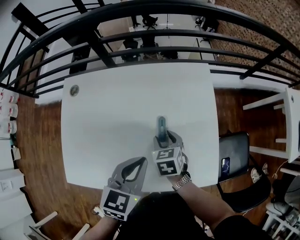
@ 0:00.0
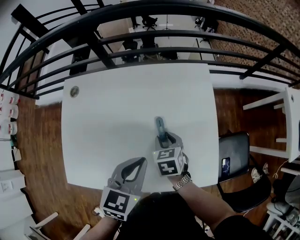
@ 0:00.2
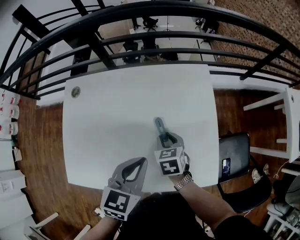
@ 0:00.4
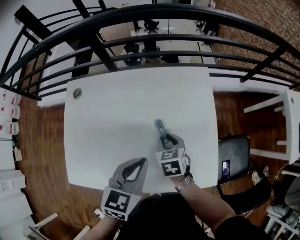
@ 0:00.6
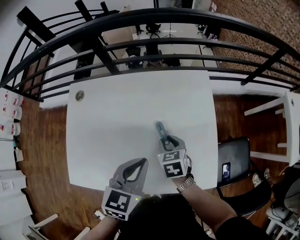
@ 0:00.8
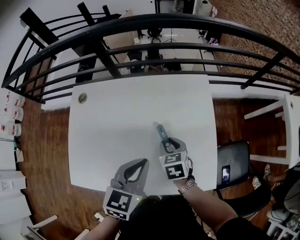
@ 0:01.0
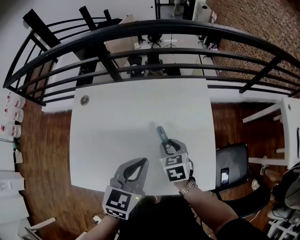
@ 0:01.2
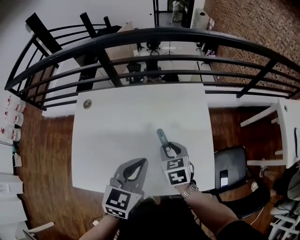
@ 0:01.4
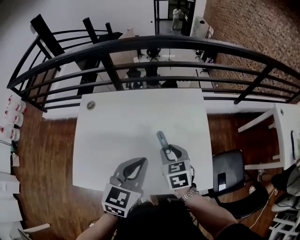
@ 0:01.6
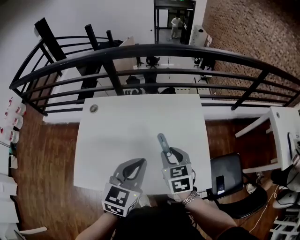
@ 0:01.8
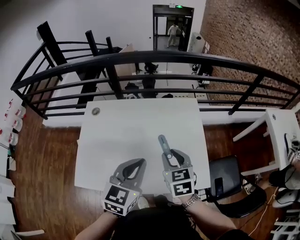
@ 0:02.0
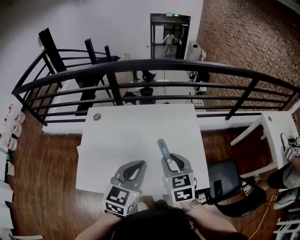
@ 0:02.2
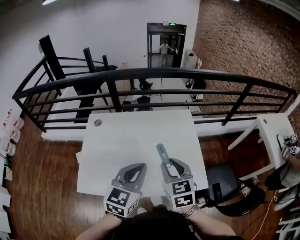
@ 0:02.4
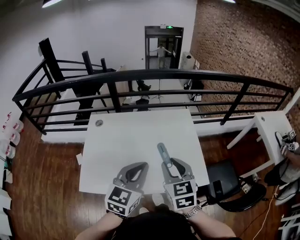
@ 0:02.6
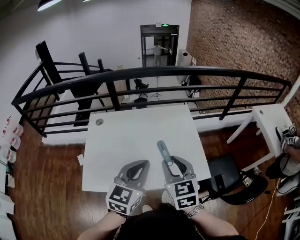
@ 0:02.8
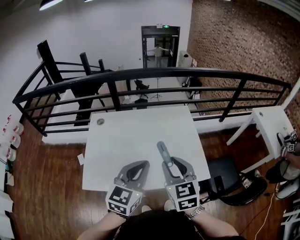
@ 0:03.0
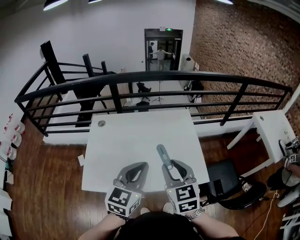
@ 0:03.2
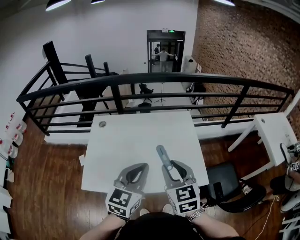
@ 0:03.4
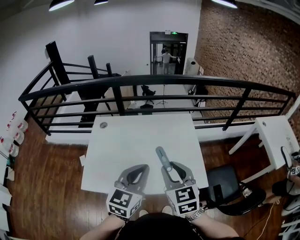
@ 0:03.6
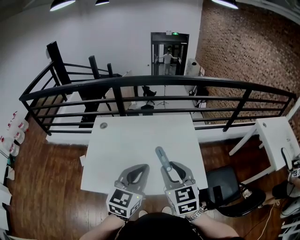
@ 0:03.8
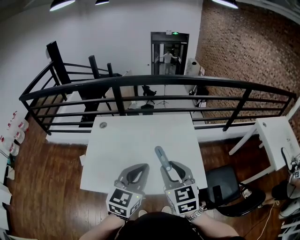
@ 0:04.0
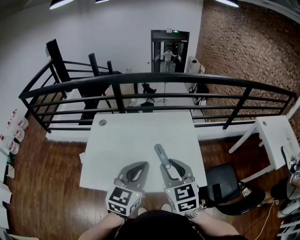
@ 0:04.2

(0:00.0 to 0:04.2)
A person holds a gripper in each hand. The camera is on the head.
0:00.0 - 0:01.4: Both grippers travel together upward, some 5 cm.
0:01.4 - 0:02.8: The left gripper is displaced backward and upward by some 20 cm; the right gripper heads upward and backward, covering about 30 cm, and rotates some 30 degrees.
0:02.8 - 0:04.2: The grippers move only a little.

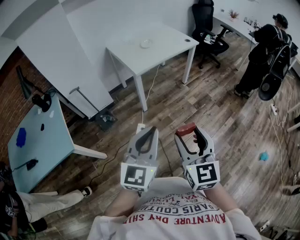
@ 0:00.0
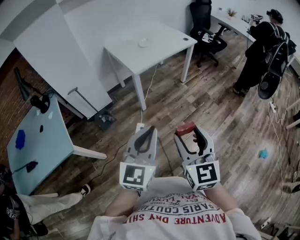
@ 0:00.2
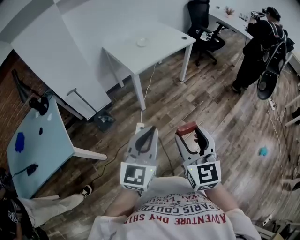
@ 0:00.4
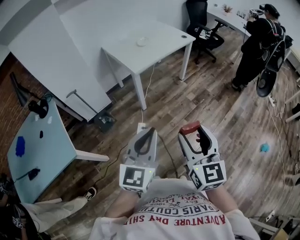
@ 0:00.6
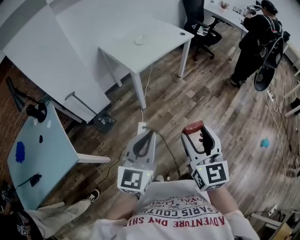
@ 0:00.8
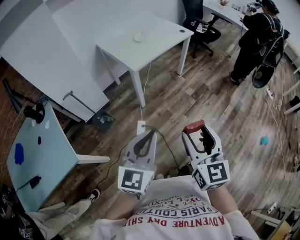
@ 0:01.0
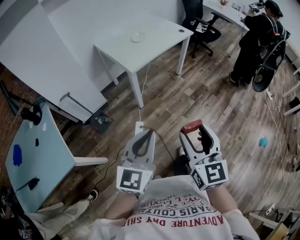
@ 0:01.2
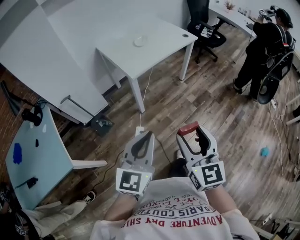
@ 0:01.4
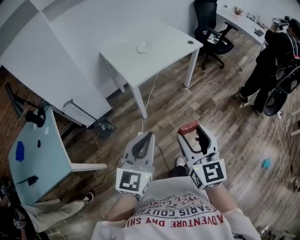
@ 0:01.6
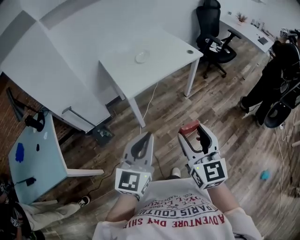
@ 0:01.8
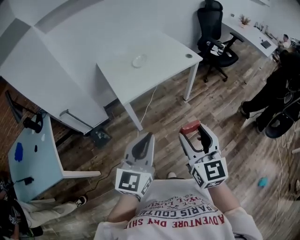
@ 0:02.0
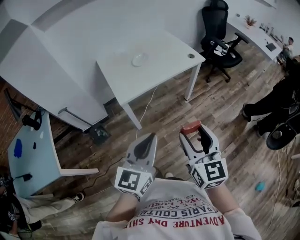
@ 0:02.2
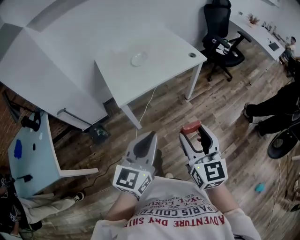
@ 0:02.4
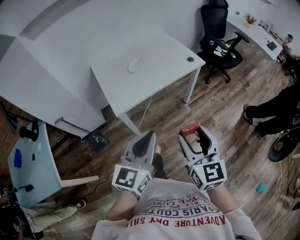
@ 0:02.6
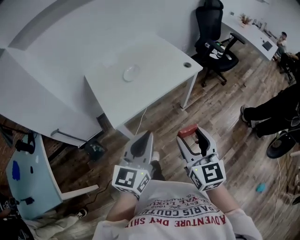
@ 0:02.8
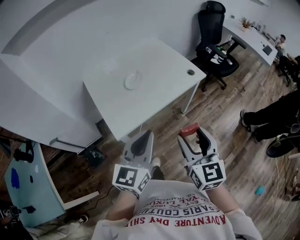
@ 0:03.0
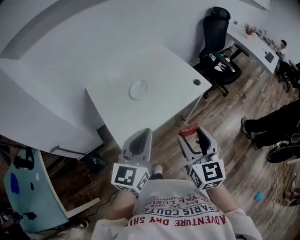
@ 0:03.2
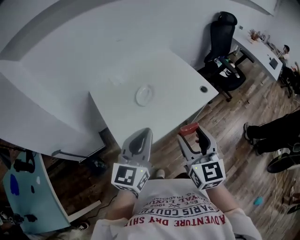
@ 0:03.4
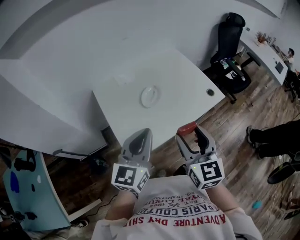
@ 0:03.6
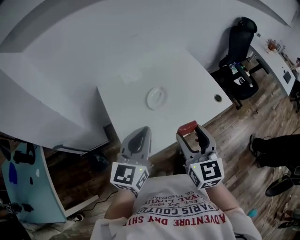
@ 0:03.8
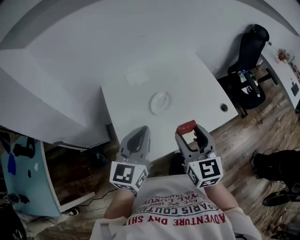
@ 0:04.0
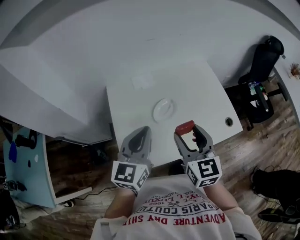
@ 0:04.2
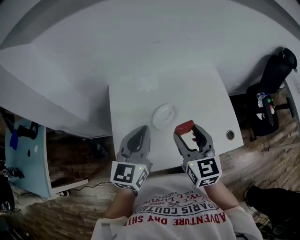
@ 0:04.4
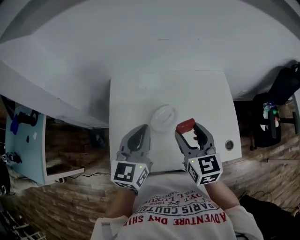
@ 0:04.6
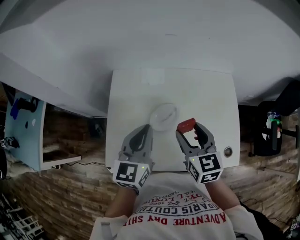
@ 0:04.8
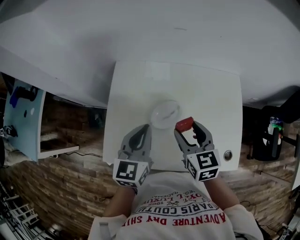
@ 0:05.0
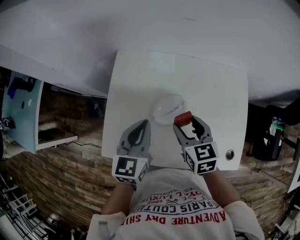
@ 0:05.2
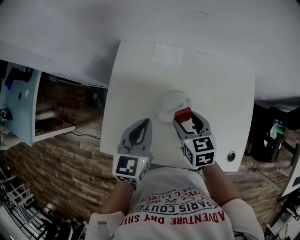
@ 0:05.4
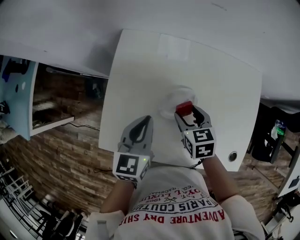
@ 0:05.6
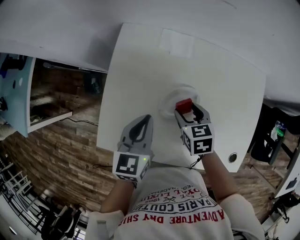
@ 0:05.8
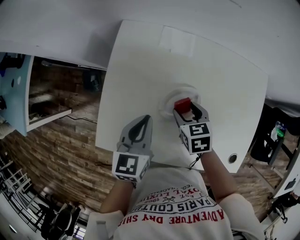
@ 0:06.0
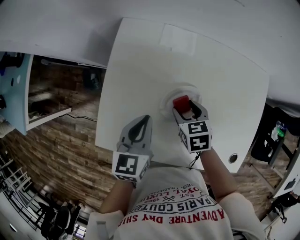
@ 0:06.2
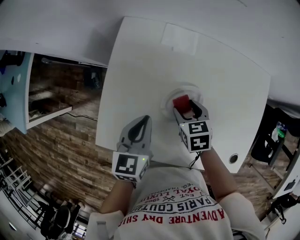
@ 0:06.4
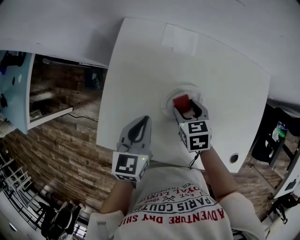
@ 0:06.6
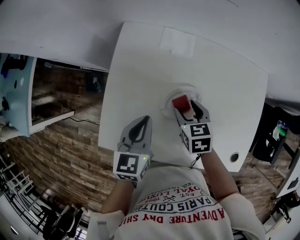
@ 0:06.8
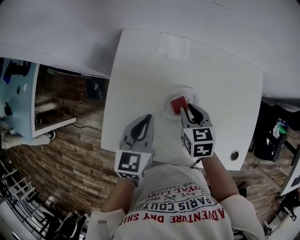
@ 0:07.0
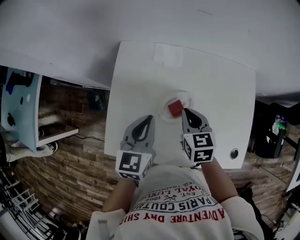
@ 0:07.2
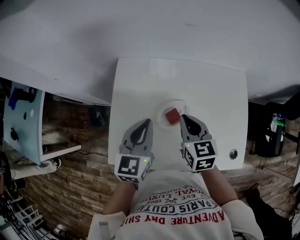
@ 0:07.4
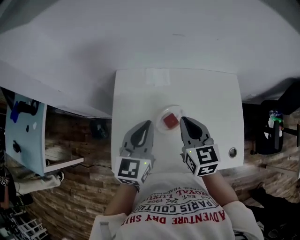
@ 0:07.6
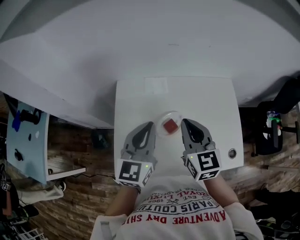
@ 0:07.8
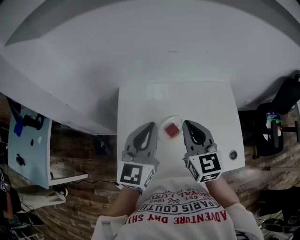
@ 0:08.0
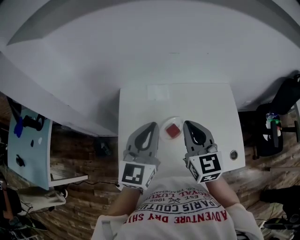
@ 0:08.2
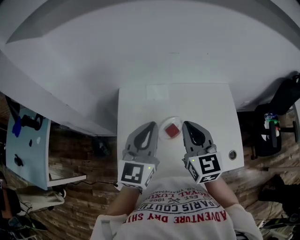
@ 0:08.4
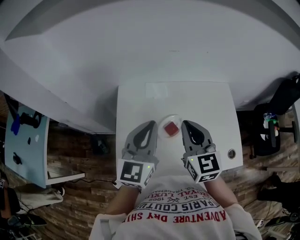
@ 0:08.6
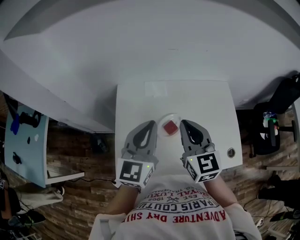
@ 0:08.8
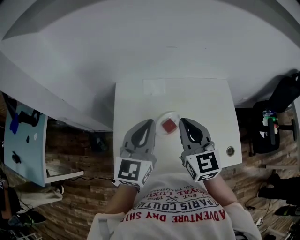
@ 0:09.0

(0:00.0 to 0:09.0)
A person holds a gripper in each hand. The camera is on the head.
0:00.0 - 0:01.6: The grippers both shift forward by about 15 cm.
0:01.6 - 0:03.0: The two grippers go some 35 cm forward.
0:03.0 - 0:04.4: The right gripper changes place by about 40 cm, and turns by some 30 degrees. Meanwhile the left gripper changes place by about 35 cm, and swivels some 30 degrees.
0:04.4 - 0:06.0: The grippers both shift downward by roughly 20 cm. The right gripper tips its fingers downward by roughly 40 degrees. The left gripper swivels about 30 degrees.
0:06.0 - 0:07.6: Both grippers move upward, some 15 cm. The right gripper angles its fingers upward, by some 30 degrees, and closes its fingers, while the left gripper swivels approximately 20 degrees.
0:07.6 - 0:09.0: Both grippers travel together upward, some 5 cm.

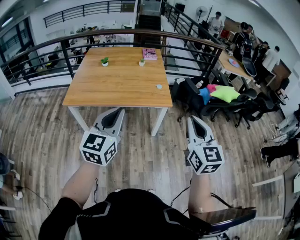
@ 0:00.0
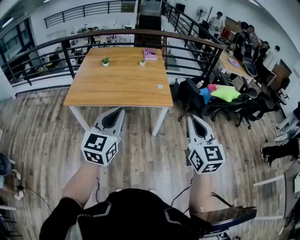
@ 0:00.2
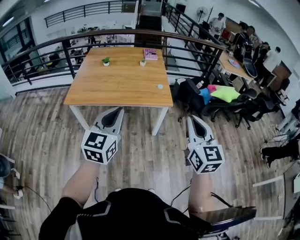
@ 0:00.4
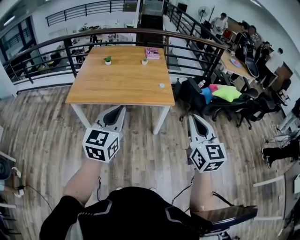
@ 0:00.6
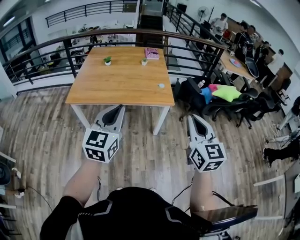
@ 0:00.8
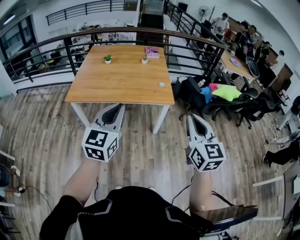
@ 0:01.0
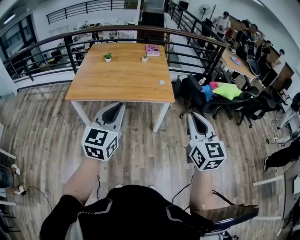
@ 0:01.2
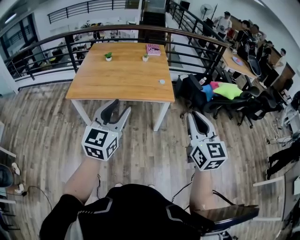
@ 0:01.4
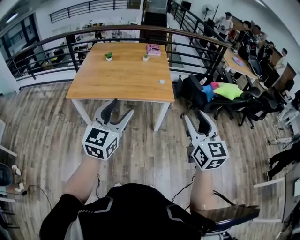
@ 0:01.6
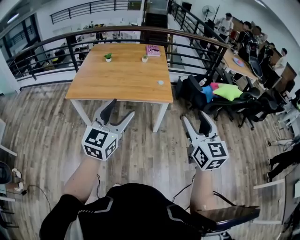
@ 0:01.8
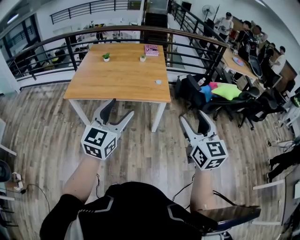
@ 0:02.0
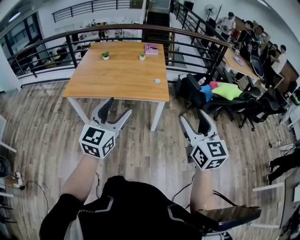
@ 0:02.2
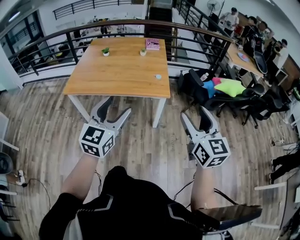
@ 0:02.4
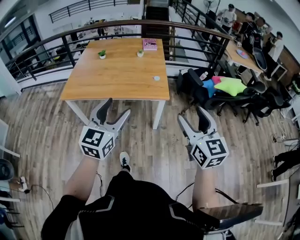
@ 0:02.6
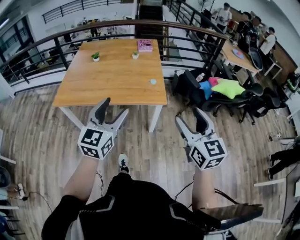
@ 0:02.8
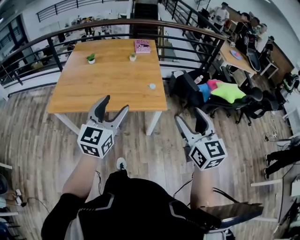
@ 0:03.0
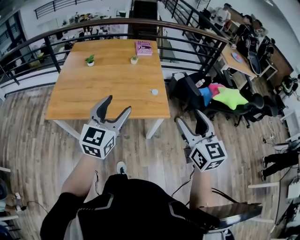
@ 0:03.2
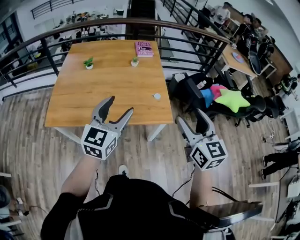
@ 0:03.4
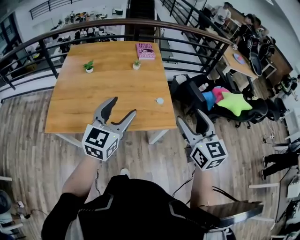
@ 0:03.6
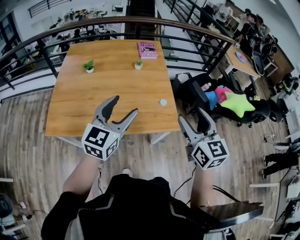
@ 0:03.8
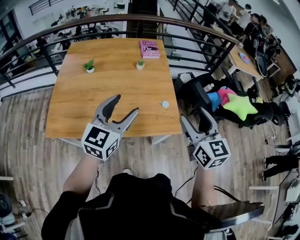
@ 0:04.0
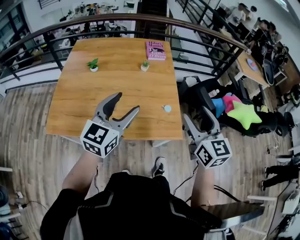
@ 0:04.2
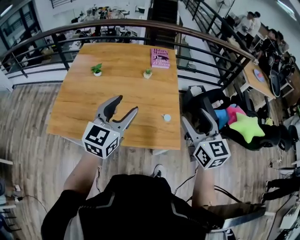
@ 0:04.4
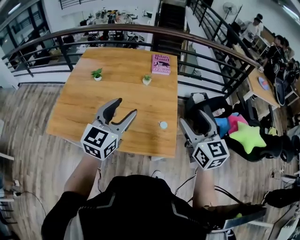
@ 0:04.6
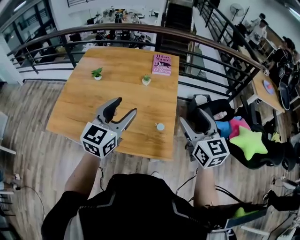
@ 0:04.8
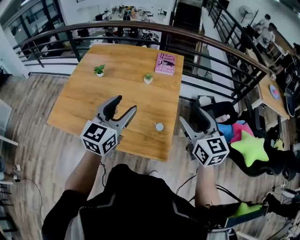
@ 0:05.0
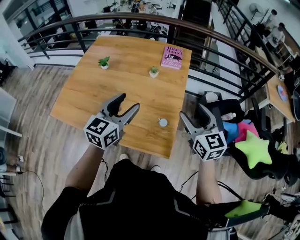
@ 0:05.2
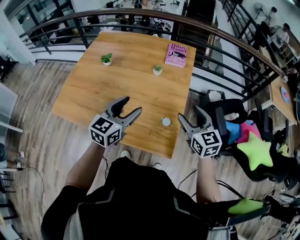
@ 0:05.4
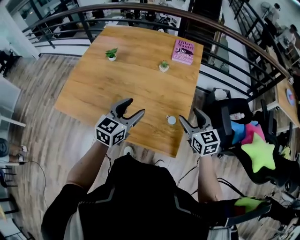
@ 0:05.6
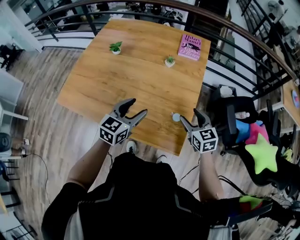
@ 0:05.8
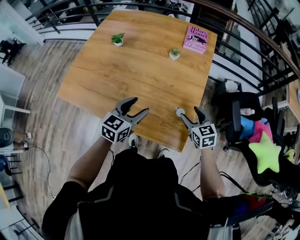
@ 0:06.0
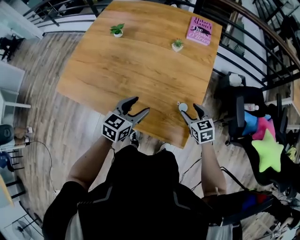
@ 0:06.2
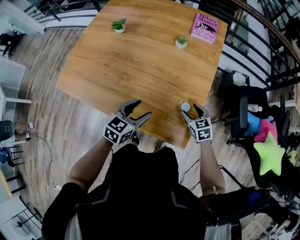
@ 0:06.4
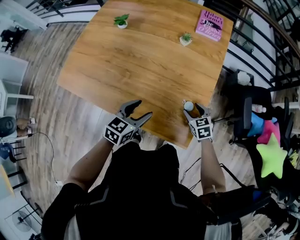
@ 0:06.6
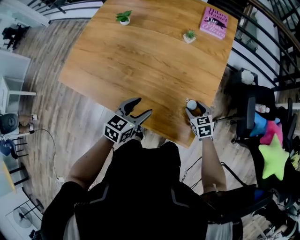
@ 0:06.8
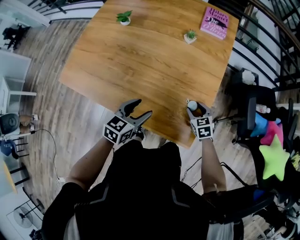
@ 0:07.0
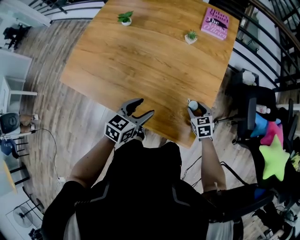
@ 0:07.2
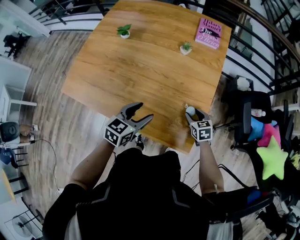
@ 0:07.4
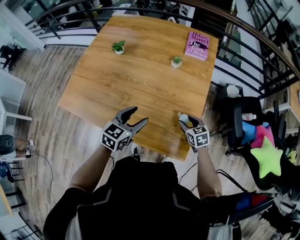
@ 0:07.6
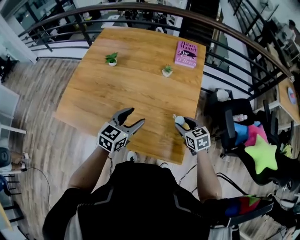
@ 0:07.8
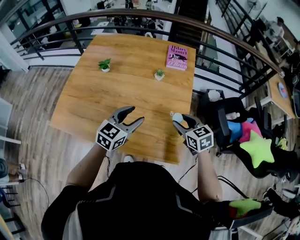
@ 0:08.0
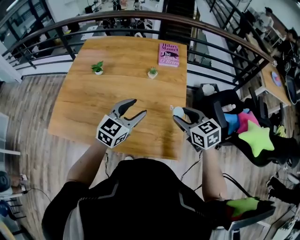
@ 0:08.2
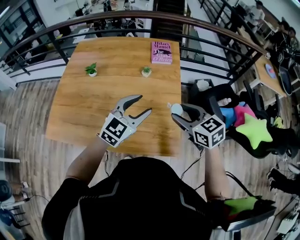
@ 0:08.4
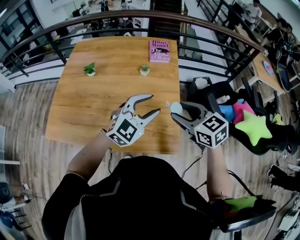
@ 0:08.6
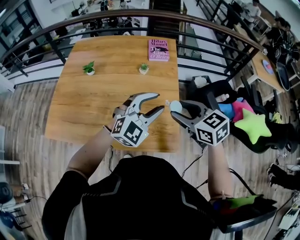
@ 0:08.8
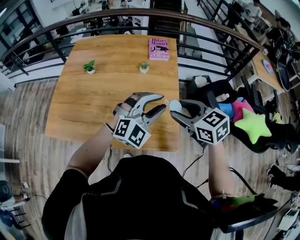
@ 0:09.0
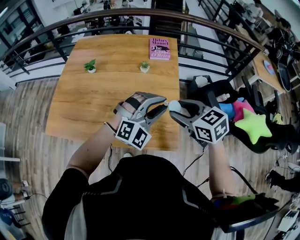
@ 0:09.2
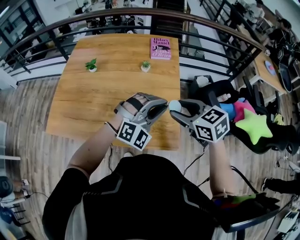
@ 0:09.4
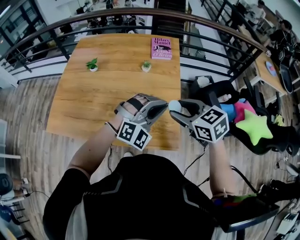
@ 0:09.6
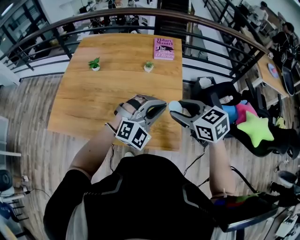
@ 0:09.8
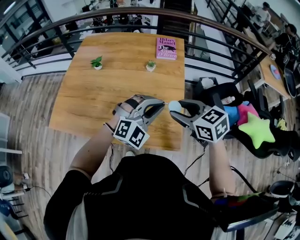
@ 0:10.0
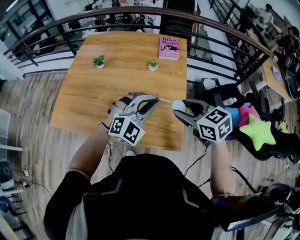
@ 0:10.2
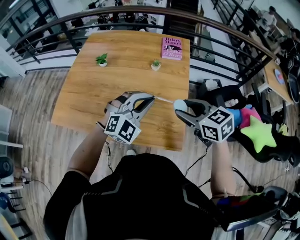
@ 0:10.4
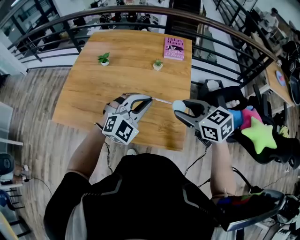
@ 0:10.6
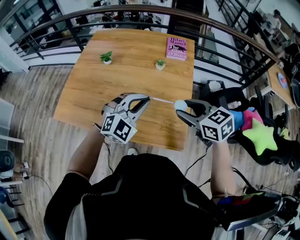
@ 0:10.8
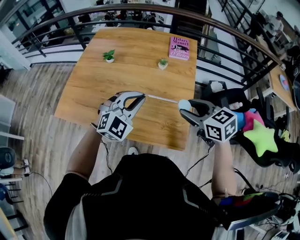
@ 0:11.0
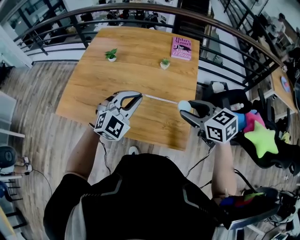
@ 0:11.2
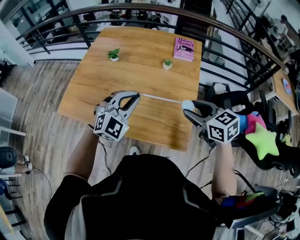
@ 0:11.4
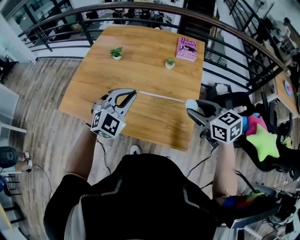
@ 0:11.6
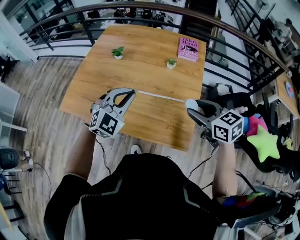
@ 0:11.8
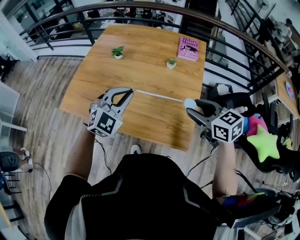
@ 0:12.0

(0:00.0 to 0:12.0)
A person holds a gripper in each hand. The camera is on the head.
0:00.0 - 0:01.6: The left gripper opens up, while the right gripper opens up.
0:01.6 - 0:03.0: Both grippers move forward, some 20 cm.
0:03.0 - 0:04.4: The grippers both shift forward by some 30 cm.
0:04.4 - 0:06.0: The left gripper goes roughly 20 cm downward, and rotates some 20 degrees. Meanwhile the right gripper shifts approximately 30 cm downward and forward, and rotates roughly 30 degrees.
0:06.0 - 0:07.6: The left gripper goes downward and returns, some 10 cm each way. Meanwhile the right gripper travels downward by approximately 5 cm.
0:07.6 - 0:09.0: The left gripper goes some 20 cm to the right and upward, twists roughly 60 degrees clockwise, seen from behind, and closes; the right gripper goes roughly 25 cm upward.
0:09.0 - 0:10.4: The left gripper goes roughly 5 cm to the left, and closes its fingers.
0:10.4 - 0:12.0: The left gripper shifts about 15 cm to the left.
